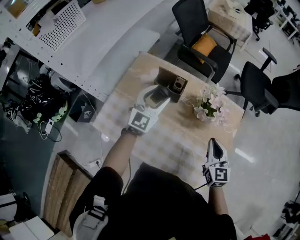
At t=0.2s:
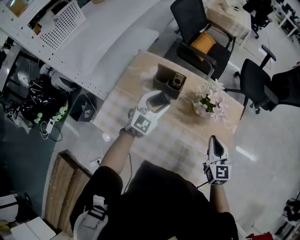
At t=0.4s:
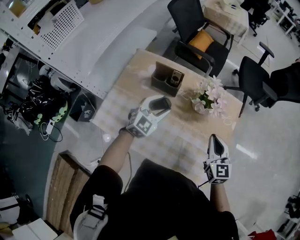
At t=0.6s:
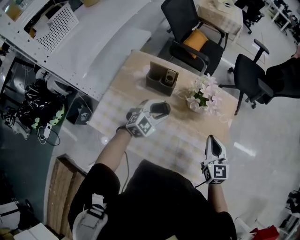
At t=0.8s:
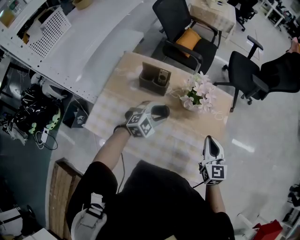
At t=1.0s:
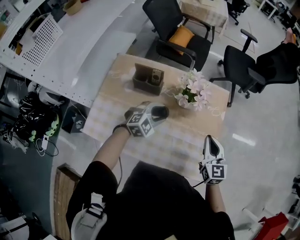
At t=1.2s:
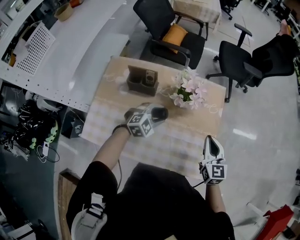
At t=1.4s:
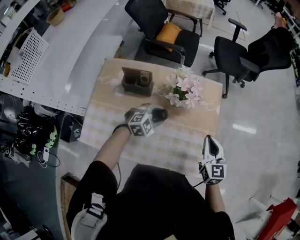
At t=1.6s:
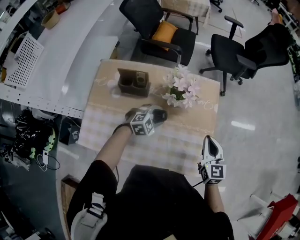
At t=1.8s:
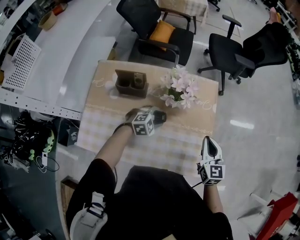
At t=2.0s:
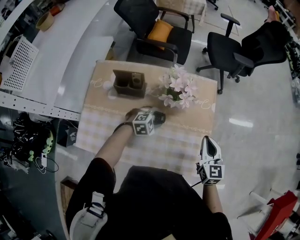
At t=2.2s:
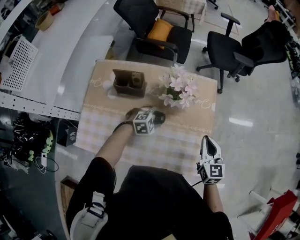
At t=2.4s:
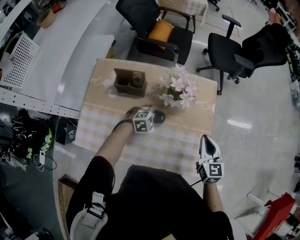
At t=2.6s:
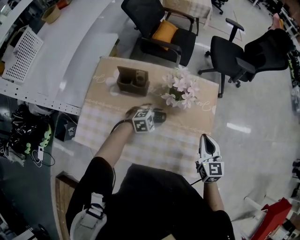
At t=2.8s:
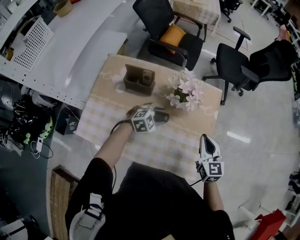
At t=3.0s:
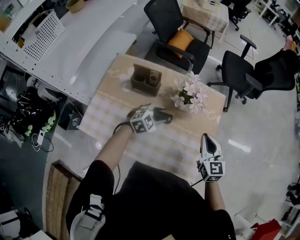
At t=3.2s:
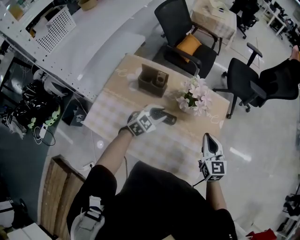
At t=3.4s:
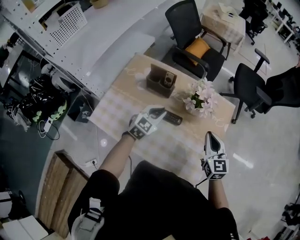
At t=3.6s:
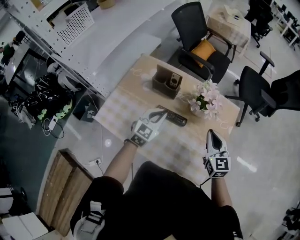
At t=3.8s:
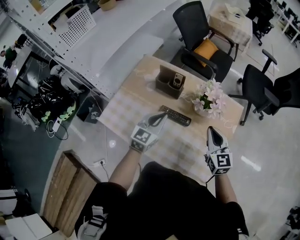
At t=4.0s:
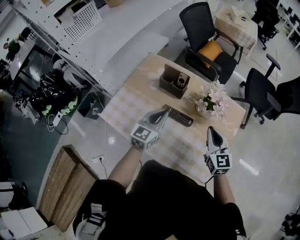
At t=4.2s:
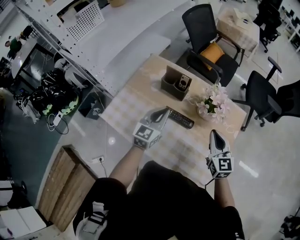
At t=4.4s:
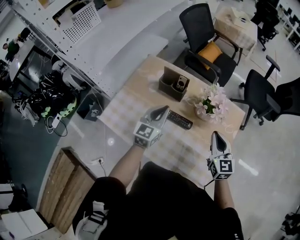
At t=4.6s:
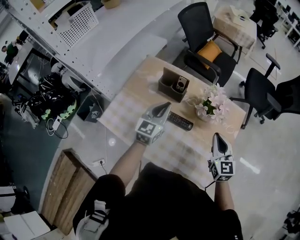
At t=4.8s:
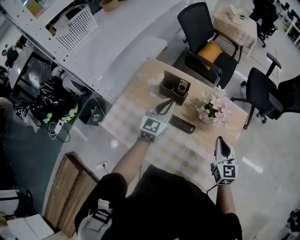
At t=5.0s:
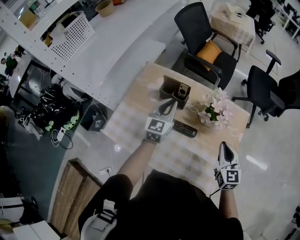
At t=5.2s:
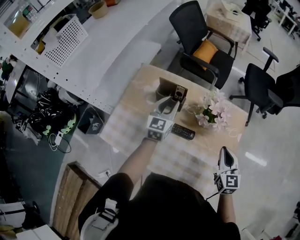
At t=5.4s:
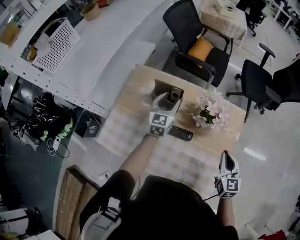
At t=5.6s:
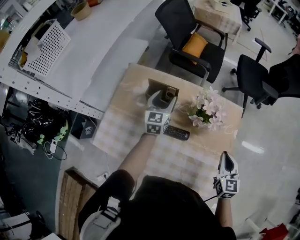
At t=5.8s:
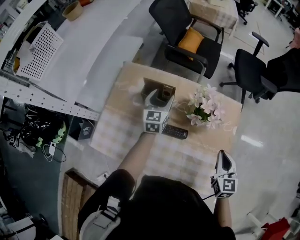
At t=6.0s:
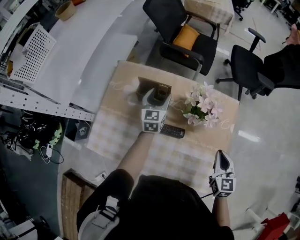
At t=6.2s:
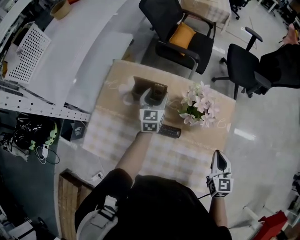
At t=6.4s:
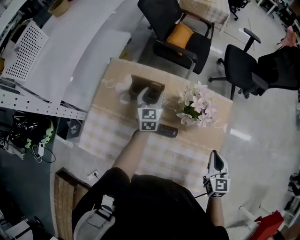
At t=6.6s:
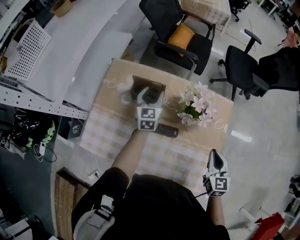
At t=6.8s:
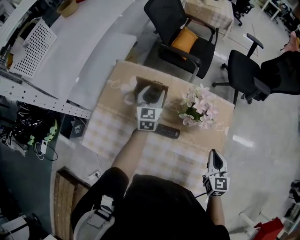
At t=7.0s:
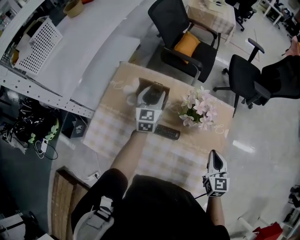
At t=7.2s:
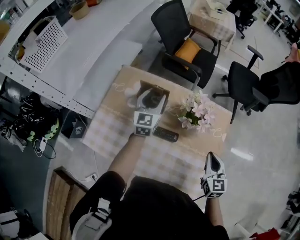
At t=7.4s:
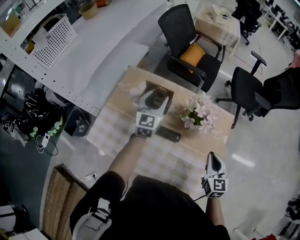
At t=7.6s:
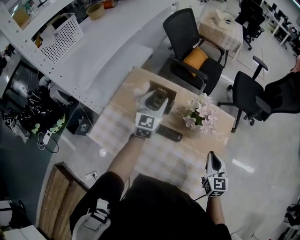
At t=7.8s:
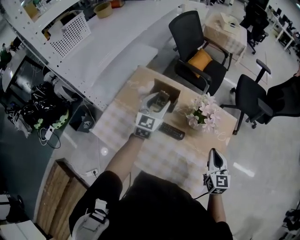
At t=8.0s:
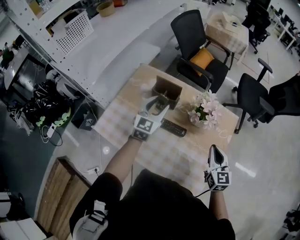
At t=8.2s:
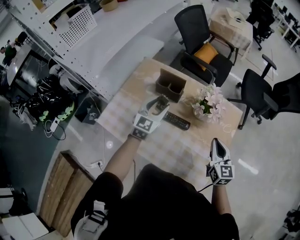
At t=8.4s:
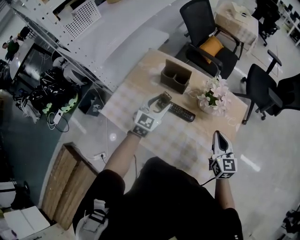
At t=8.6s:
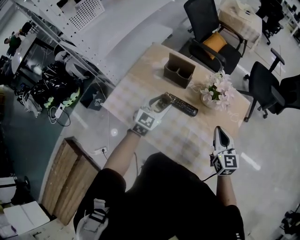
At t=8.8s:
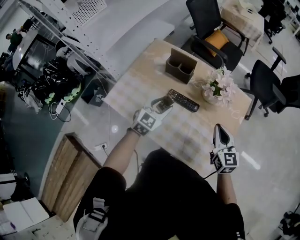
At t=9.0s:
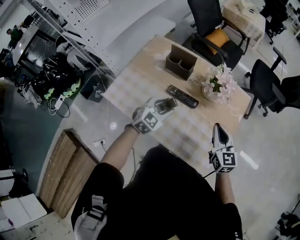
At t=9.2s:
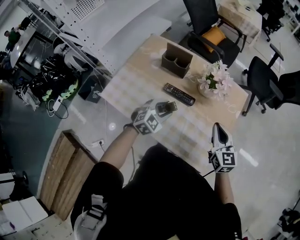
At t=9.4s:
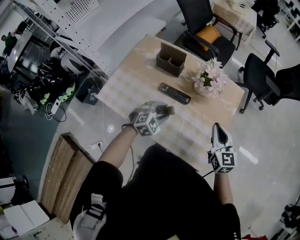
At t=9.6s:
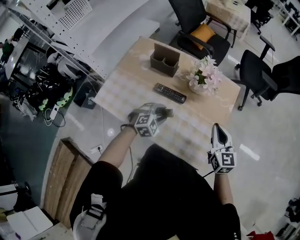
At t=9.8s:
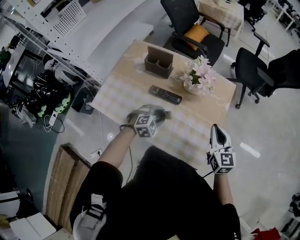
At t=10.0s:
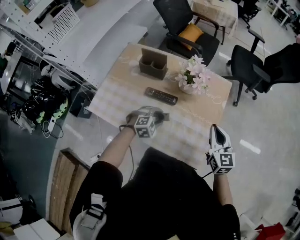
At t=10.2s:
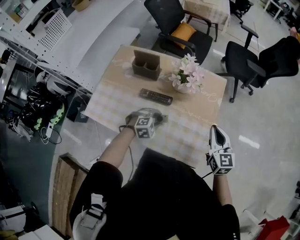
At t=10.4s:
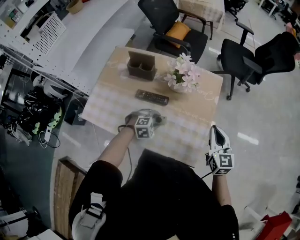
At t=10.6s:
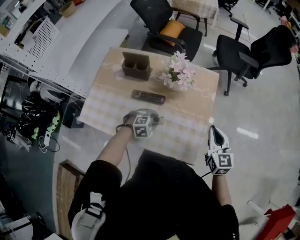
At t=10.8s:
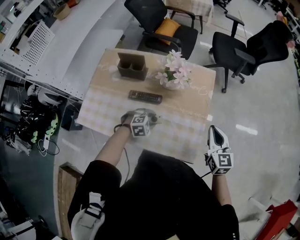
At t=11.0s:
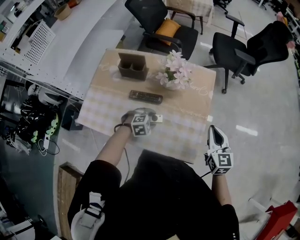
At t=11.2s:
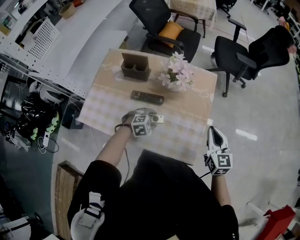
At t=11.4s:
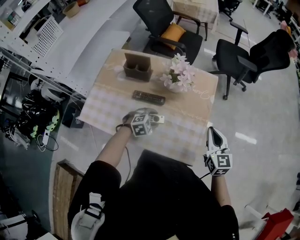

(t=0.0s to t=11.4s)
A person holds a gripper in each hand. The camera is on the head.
t=0.0s - t=1.4s: The left gripper shifts by about 25 cm, and points its fingers approximately 40 degrees further downward; the right gripper ends up some 10 cm from where it was.
t=2.8s - t=4.2s: The left gripper goes approximately 15 cm upward, tilts its fingers about 40 degrees upward, and closes up, while the right gripper changes place by approximately 10 cm.
t=4.2s - t=5.6s: The left gripper heads forward, covering approximately 20 cm, and opens; the right gripper moves to the right, approximately 10 cm, and swivels approximately 20 degrees.
t=5.6s - t=7.2s: The left gripper heads upward, covering some 5 cm.
t=7.2s - t=8.6s: The left gripper shifts roughly 20 cm backward; the right gripper is displaced to the left by approximately 5 cm.
t=8.6s - t=10.0s: The left gripper goes some 20 cm downward, to the right and backward, and tilts its fingers approximately 30 degrees downward, while the right gripper is displaced to the right and backward by some 10 cm.

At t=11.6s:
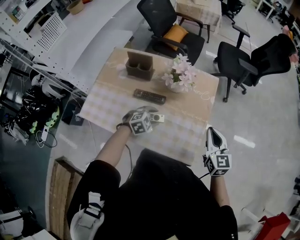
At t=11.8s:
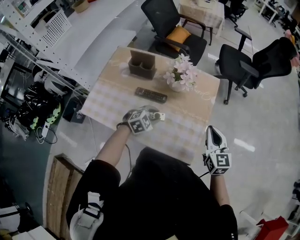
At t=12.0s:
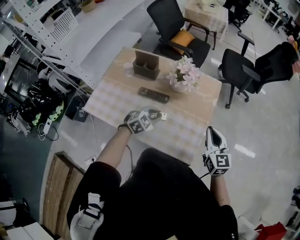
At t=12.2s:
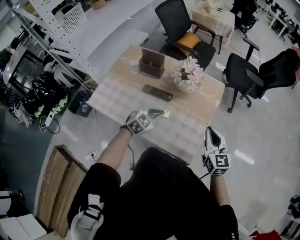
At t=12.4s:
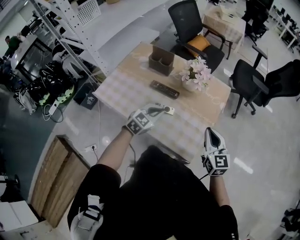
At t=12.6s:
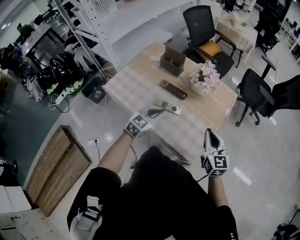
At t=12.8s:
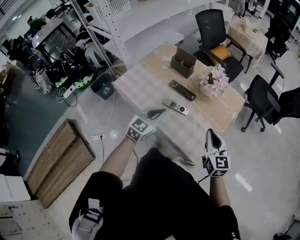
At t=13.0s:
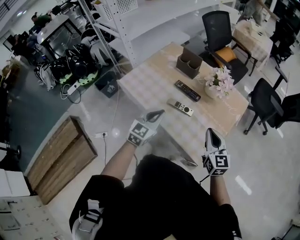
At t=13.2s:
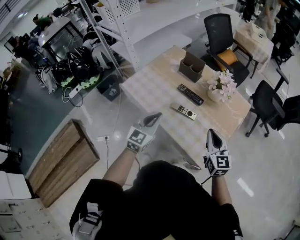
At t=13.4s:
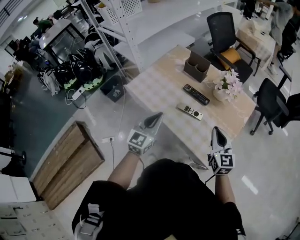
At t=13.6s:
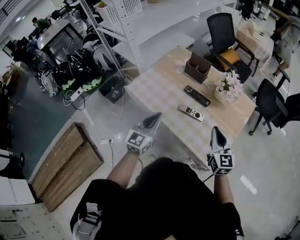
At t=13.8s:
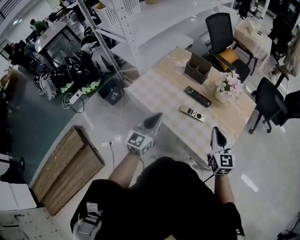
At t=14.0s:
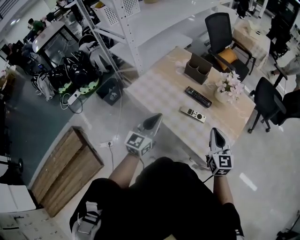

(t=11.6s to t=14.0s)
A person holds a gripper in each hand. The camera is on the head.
t=11.6s - t=12.8s: The left gripper moves upward, approximately 15 cm, tips its fingers upward by approximately 30 degrees, and closes its fingers. Meanwhile the right gripper moves approximately 10 cm, and swivels some 20 degrees.
t=12.8s - t=14.0s: The two grippers go approximately 10 cm to the left. The left gripper rotates approximately 20 degrees.

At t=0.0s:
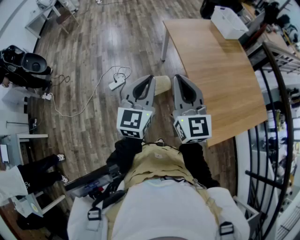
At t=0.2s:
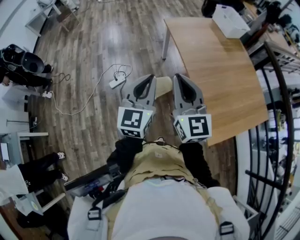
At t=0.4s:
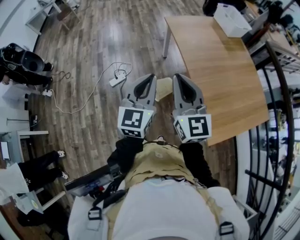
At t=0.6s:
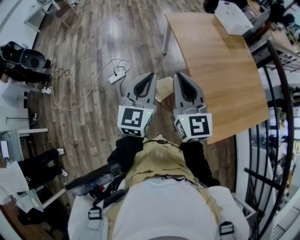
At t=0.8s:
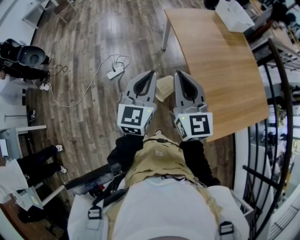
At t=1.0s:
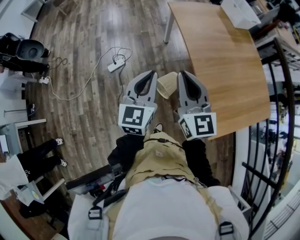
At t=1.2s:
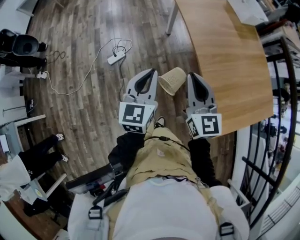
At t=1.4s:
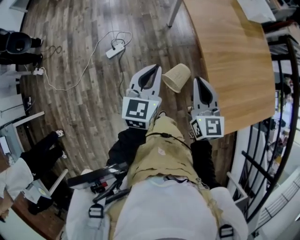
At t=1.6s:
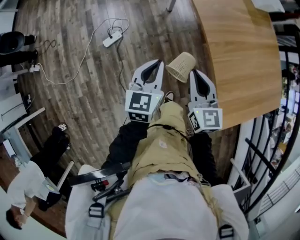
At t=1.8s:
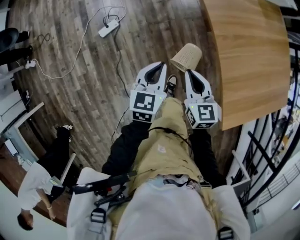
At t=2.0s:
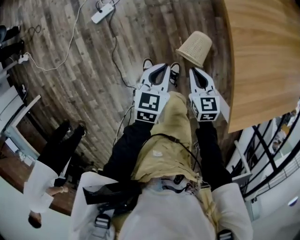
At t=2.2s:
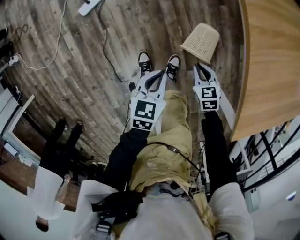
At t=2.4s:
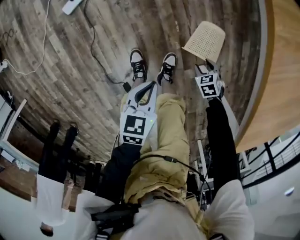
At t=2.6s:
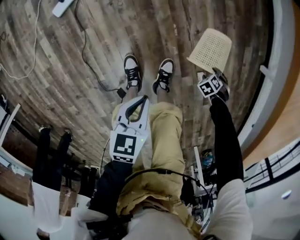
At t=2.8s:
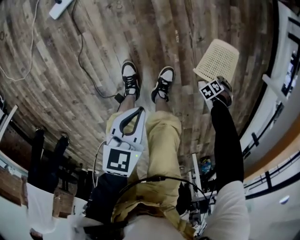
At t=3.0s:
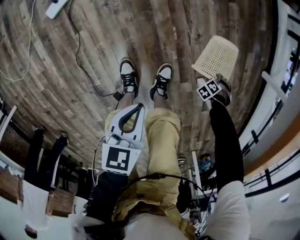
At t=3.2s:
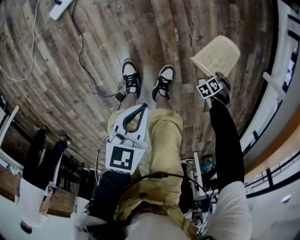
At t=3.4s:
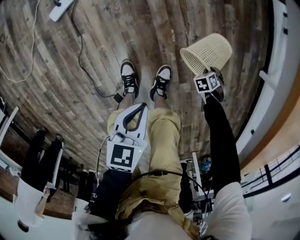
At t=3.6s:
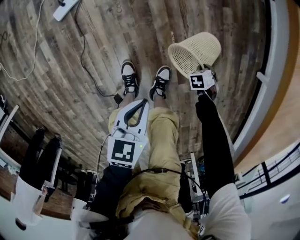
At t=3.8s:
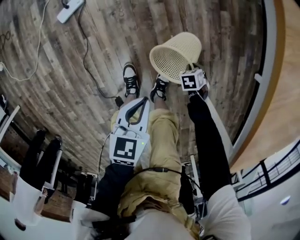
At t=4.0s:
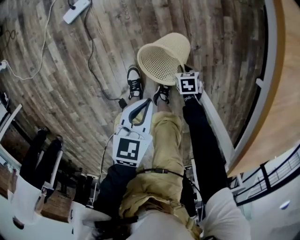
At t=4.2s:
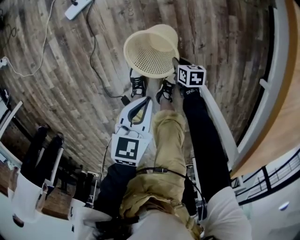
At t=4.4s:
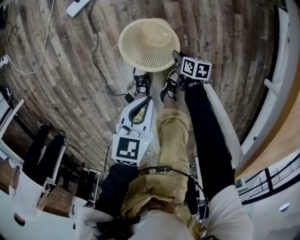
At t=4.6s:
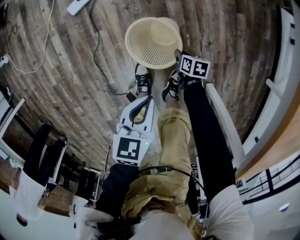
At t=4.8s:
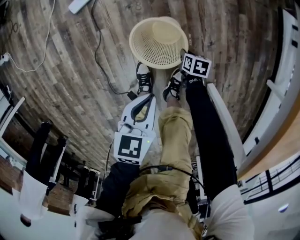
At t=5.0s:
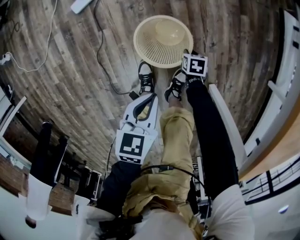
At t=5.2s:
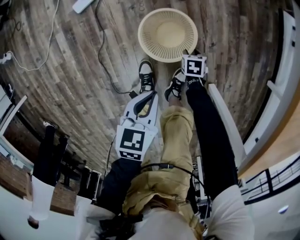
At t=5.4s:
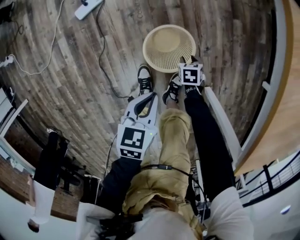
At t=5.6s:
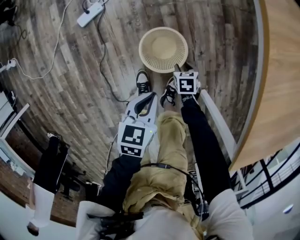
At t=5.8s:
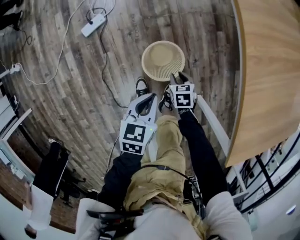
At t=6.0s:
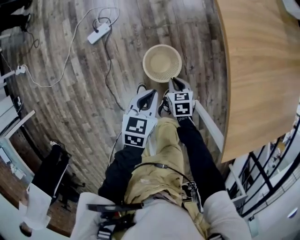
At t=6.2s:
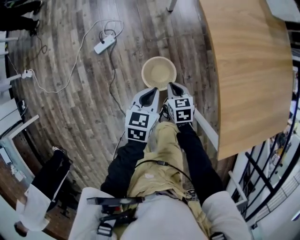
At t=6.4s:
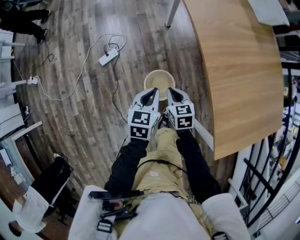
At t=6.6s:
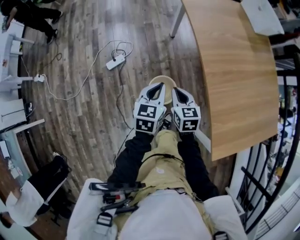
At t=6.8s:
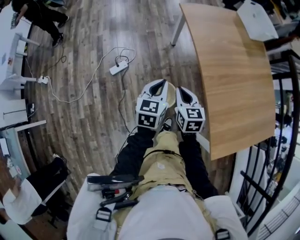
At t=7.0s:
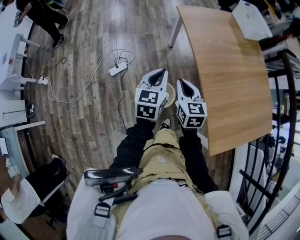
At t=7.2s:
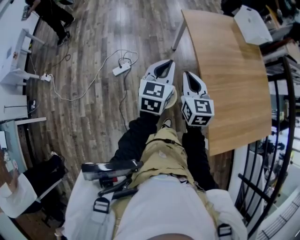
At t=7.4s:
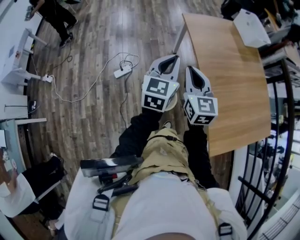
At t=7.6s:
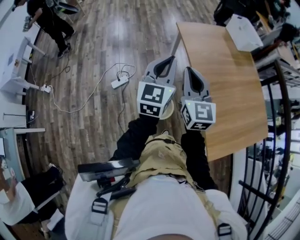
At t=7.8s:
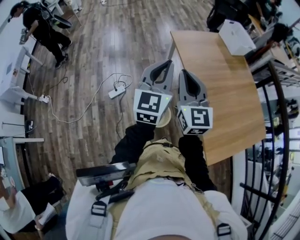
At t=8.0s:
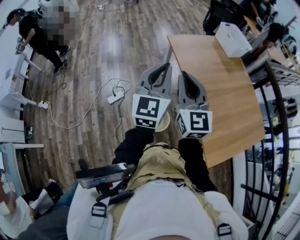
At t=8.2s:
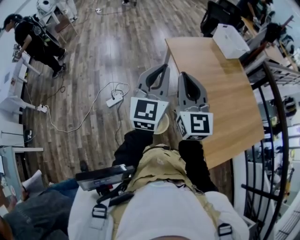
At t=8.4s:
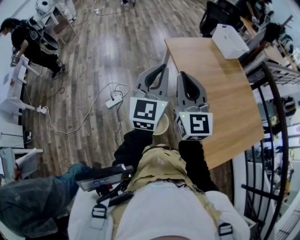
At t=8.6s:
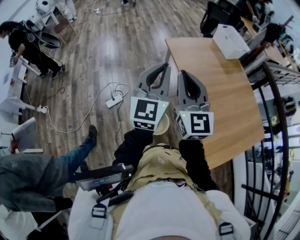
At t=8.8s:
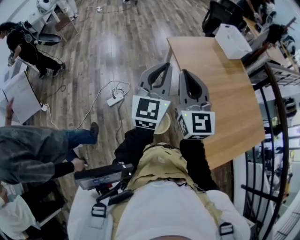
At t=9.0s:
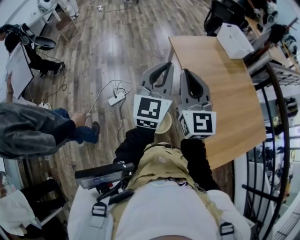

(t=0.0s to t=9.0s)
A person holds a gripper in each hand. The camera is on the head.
t=0.0s - t=1.6s: Both grippers move downward and forward, approximately 25 cm. The right gripper swivels some 20 degrees. The left gripper rotates about 20 degrees.
t=1.6s - t=3.0s: The left gripper moves downward, some 50 cm, and swivels some 40 degrees. Meanwhile the right gripper goes roughly 80 cm downward, angles its fingers downward, by approximately 50 degrees, and opens its fingers.
t=3.0s - t=4.4s: The right gripper shifts by about 35 cm, rotates roughly 90 degrees, and closes. Meanwhile the left gripper ends up some 5 cm from where it was.
t=4.4s - t=6.0s: The right gripper heads upward, covering some 30 cm, changes its angle by roughly 30 degrees, and opens and closes again; the left gripper travels upward by about 15 cm.
t=6.0s - t=7.6s: The grippers both shift upward by roughly 60 cm. The left gripper points its fingers approximately 40 degrees further upward. Meanwhile the right gripper angles its fingers upward, by about 60 degrees.
t=7.6s - t=9.0s: Both grippers travel together upward, approximately 5 cm.
